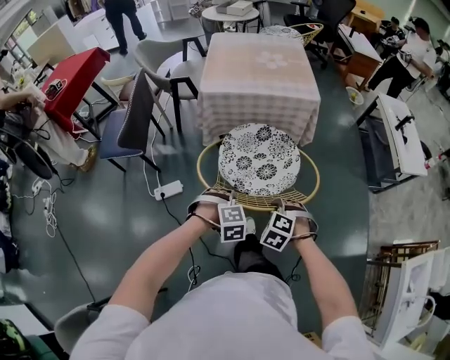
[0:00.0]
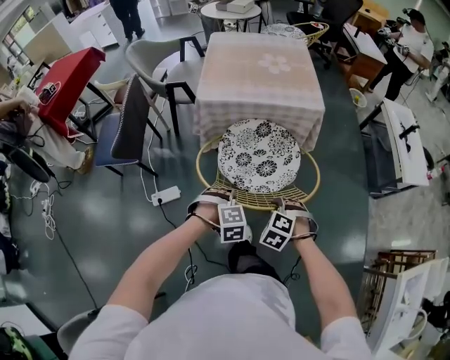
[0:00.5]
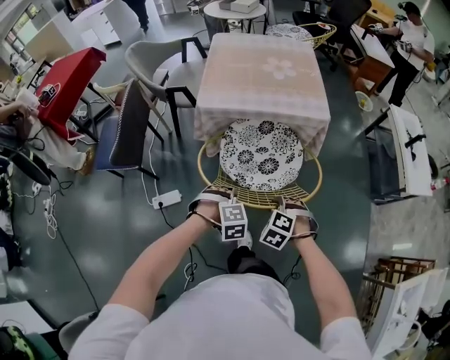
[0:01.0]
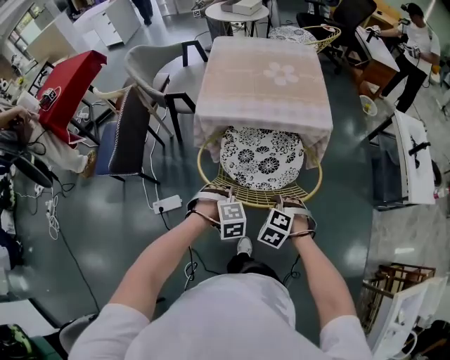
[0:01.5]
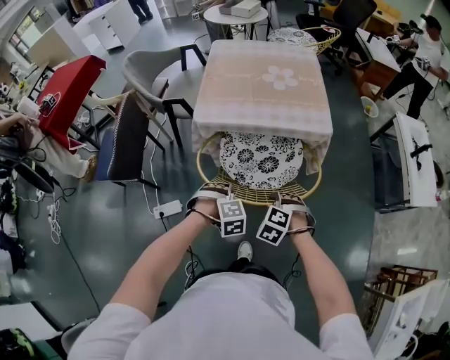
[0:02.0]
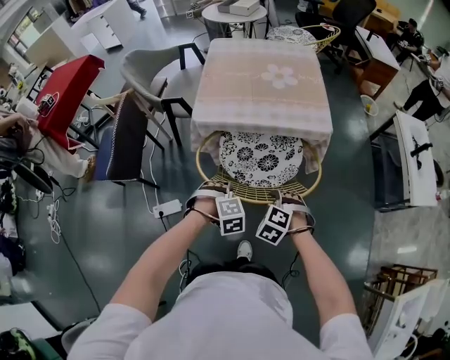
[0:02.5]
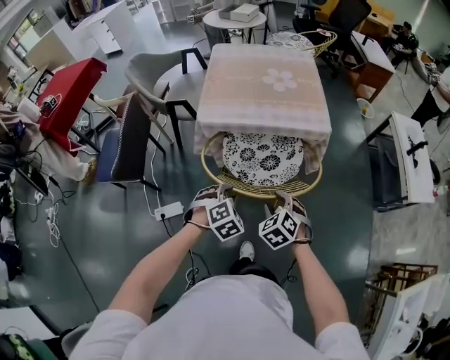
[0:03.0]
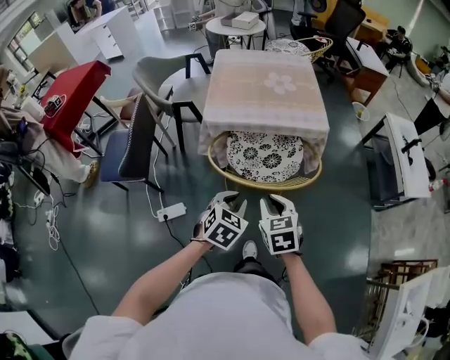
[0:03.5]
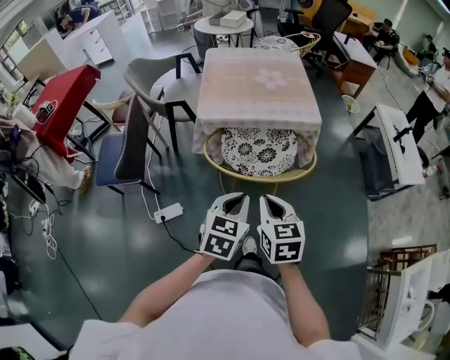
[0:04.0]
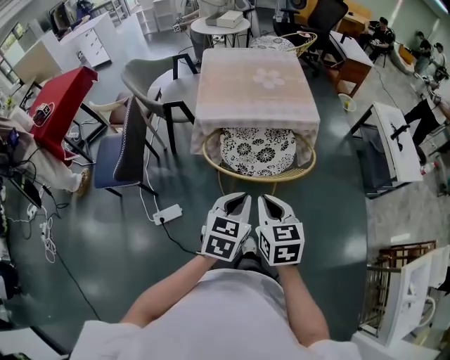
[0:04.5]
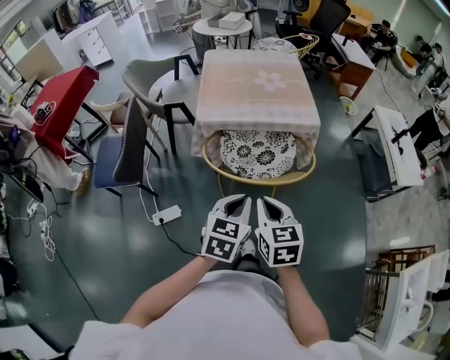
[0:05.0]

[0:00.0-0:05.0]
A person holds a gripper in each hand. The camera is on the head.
0:00.0 to 0:02.5: Both grippers move forward, approximately 25 cm.
0:02.5 to 0:05.0: The two grippers go approximately 25 cm upward and backward. The left gripper angles its fingers upward, by about 40 degrees; the right gripper rotates around the line of its fingers by roughly 60 degrees, clockwise from behind, and closes its fingers.

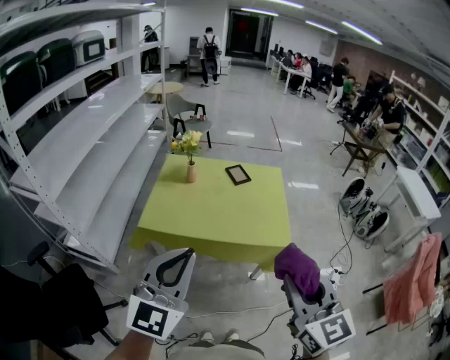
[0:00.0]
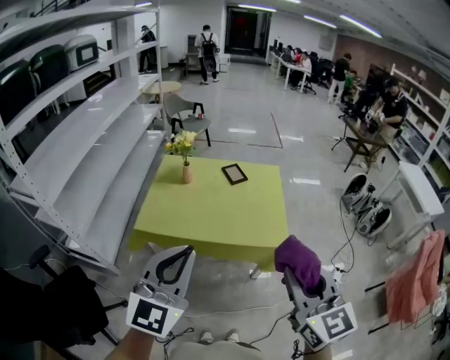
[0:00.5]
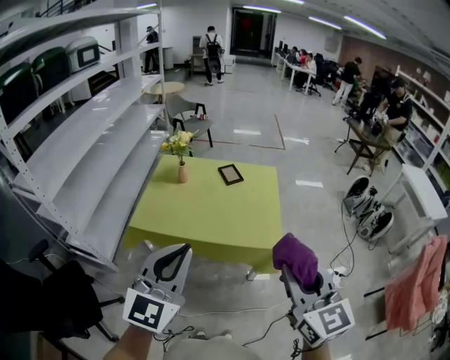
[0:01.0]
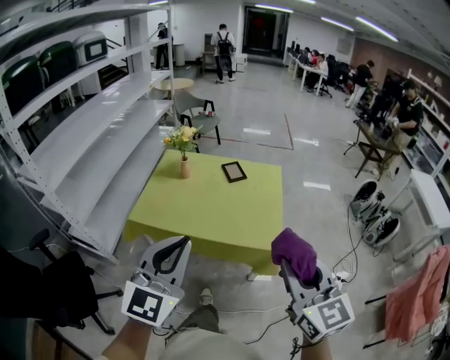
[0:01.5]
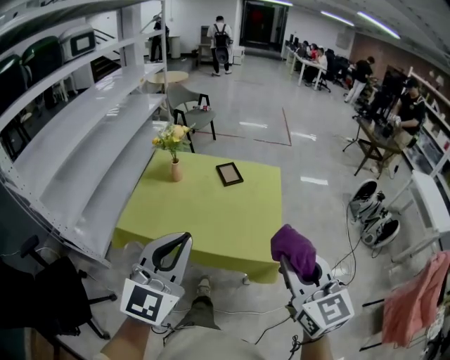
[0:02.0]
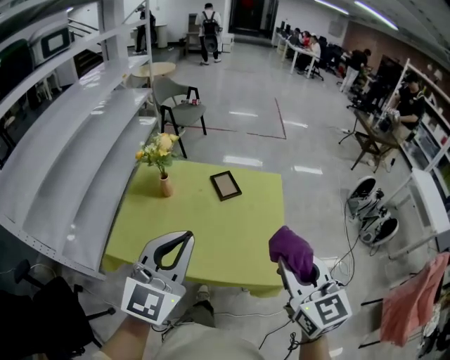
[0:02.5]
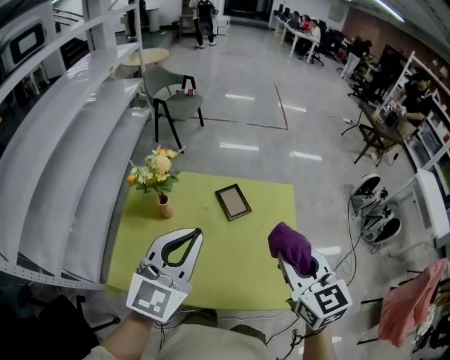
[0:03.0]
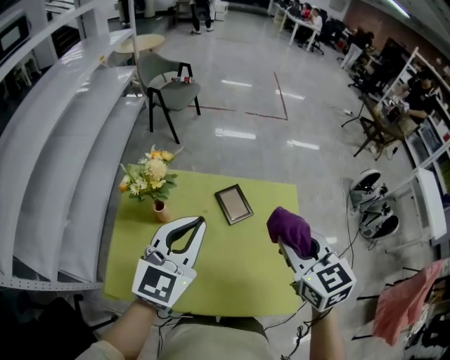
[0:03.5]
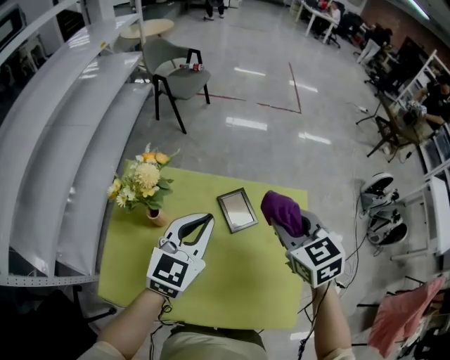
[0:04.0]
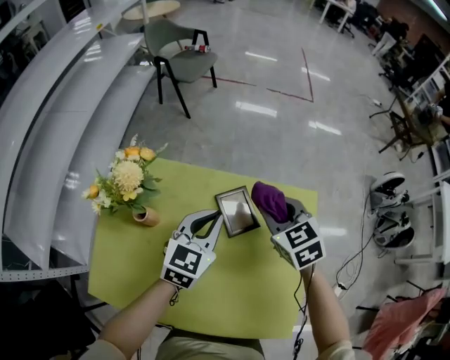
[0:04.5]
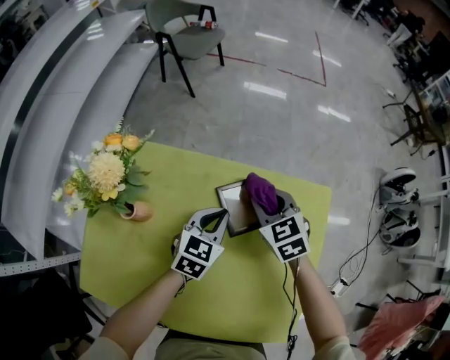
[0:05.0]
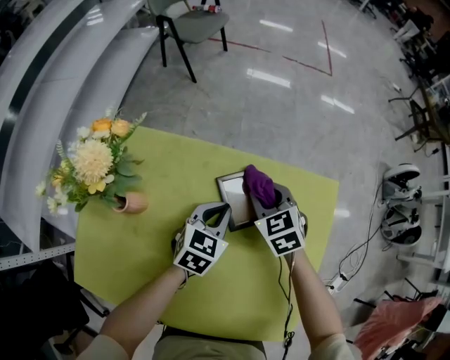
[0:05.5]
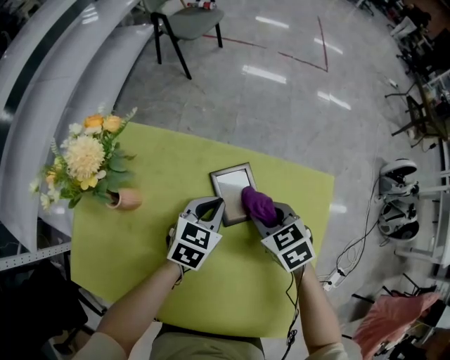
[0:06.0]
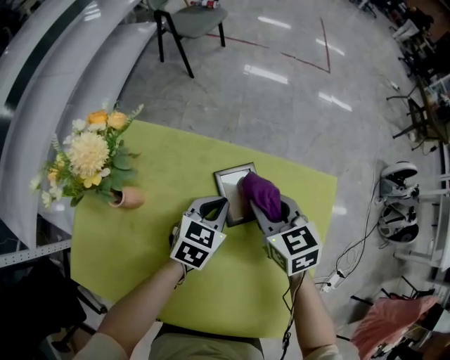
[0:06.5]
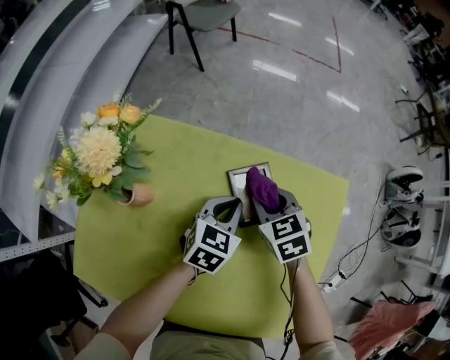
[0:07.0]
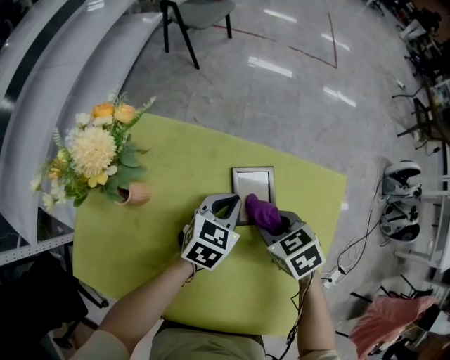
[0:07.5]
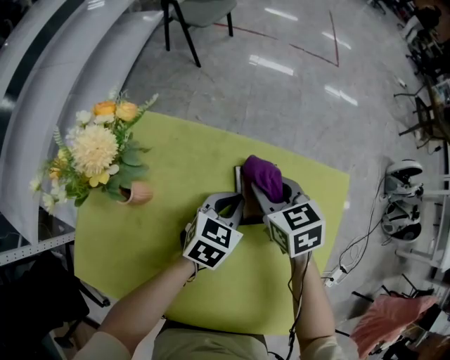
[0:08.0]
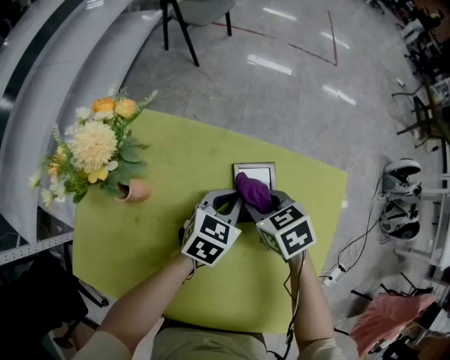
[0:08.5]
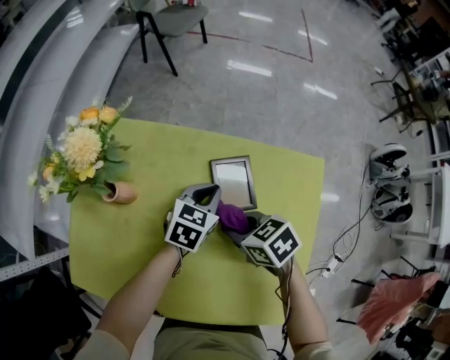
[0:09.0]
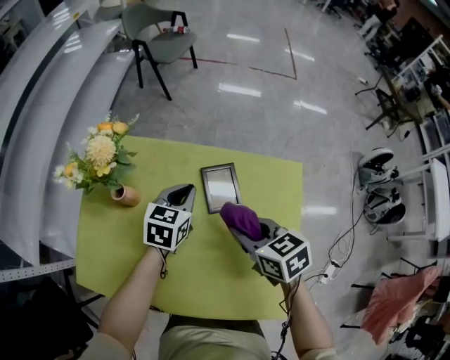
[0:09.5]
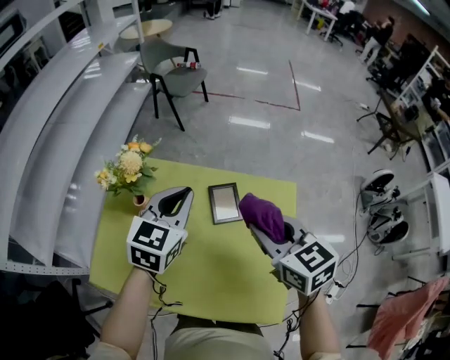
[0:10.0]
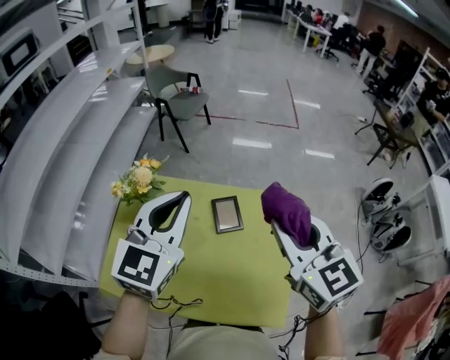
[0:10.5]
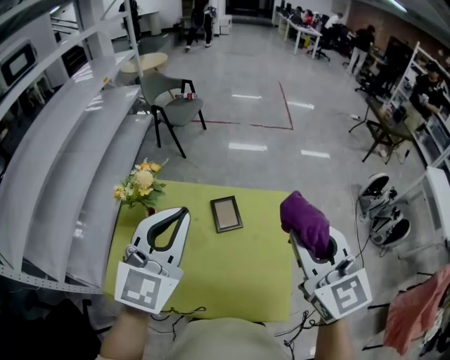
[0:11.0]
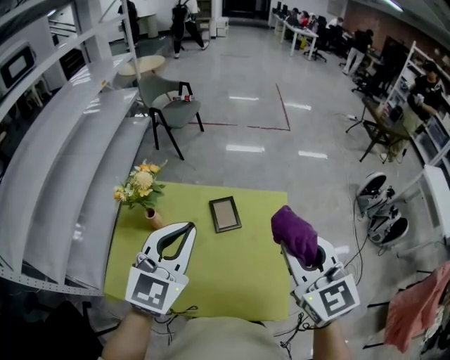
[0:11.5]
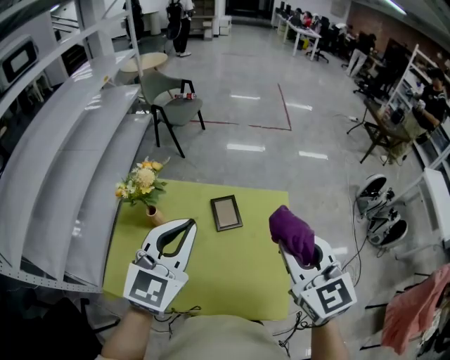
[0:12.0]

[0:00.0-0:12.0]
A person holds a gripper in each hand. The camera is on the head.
0:00.0 to 0:02.0: Both grippers move forward and to the right, approximately 20 cm.
0:02.0 to 0:04.0: The pair of grippers is taken forward, some 50 cm. The left gripper swivels some 20 degrees; the right gripper rotates approximately 30 degrees.
0:04.0 to 0:06.0: Both grippers travel together downward, about 25 cm. The left gripper rotates some 30 degrees. The right gripper turns by approximately 20 degrees.
0:06.0 to 0:08.0: The right gripper swings forward and backward, some 10 cm each way, with 2 reversals.
0:08.0 to 0:10.0: The right gripper shifts about 30 cm upward and backward; the left gripper moves upward, some 30 cm, and rotates about 20 degrees.
0:10.0 to 0:12.0: The left gripper travels upward and backward by some 20 cm; the right gripper goes approximately 15 cm upward, backward and to the right, and changes its angle by about 30 degrees.

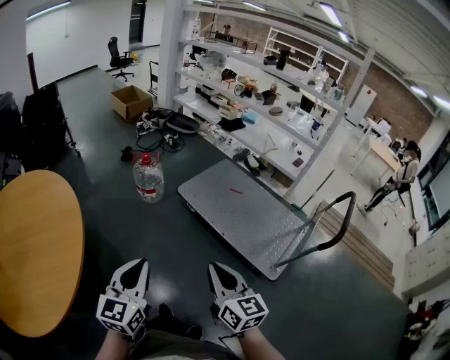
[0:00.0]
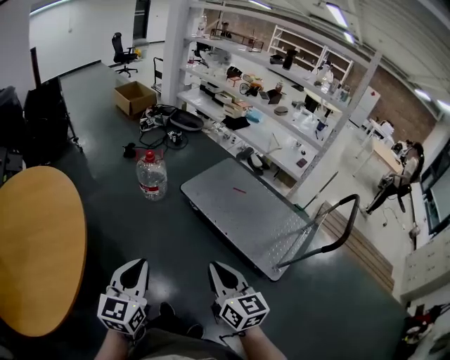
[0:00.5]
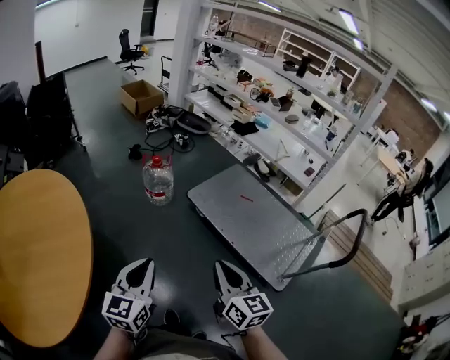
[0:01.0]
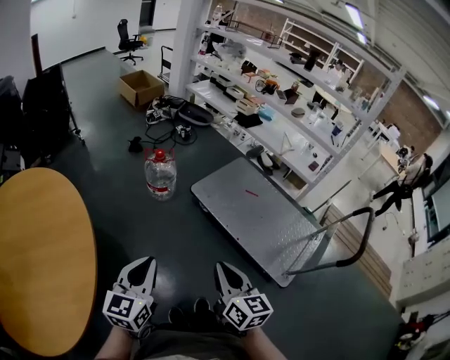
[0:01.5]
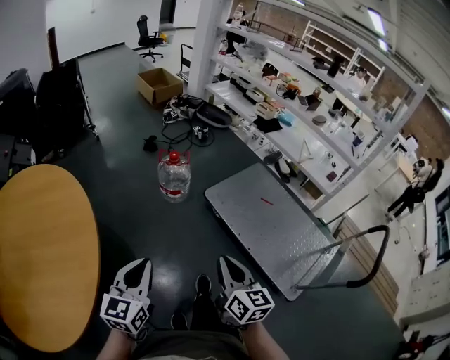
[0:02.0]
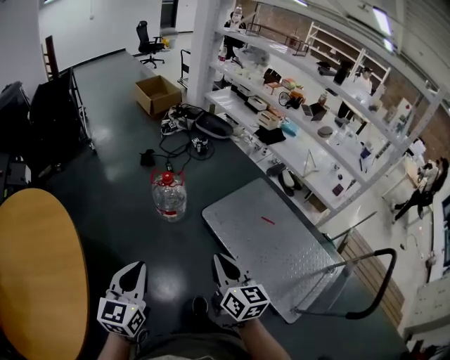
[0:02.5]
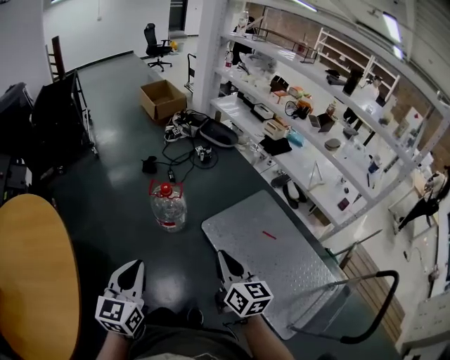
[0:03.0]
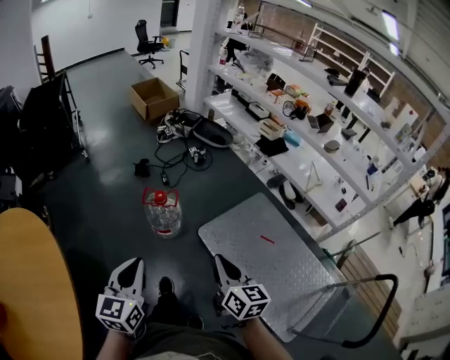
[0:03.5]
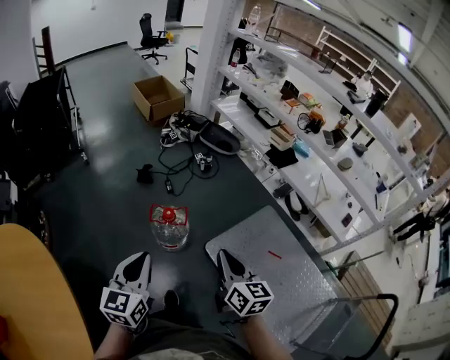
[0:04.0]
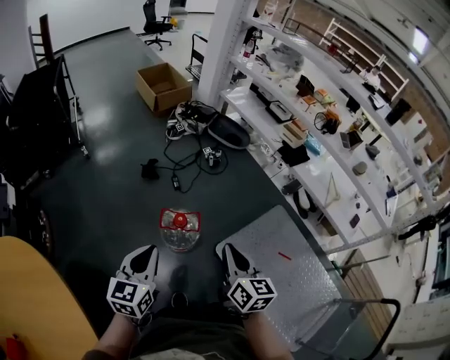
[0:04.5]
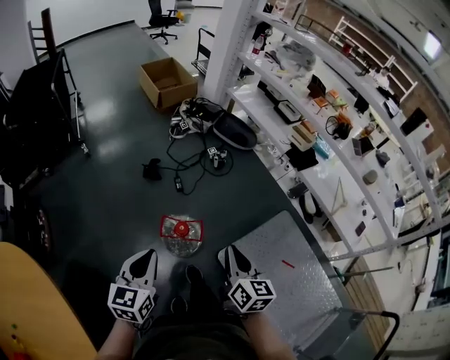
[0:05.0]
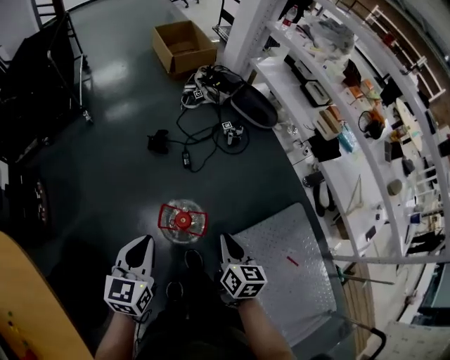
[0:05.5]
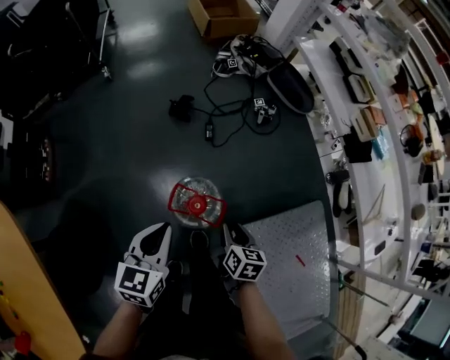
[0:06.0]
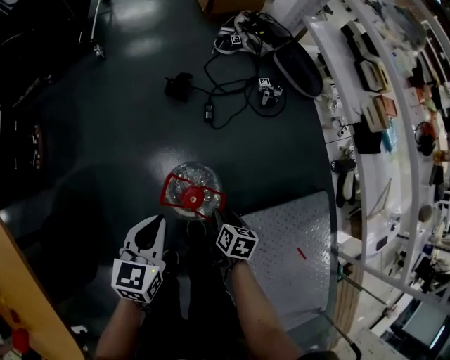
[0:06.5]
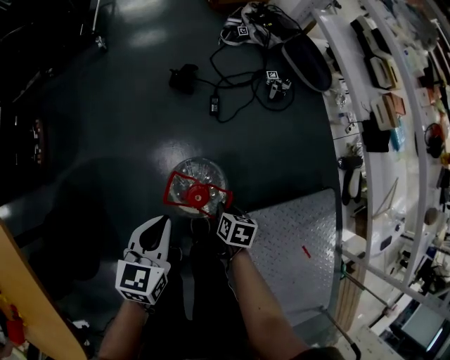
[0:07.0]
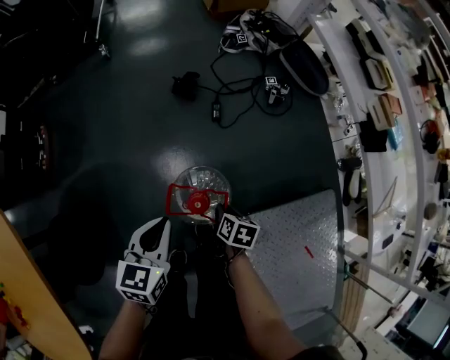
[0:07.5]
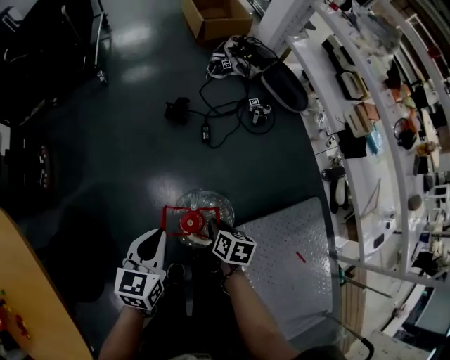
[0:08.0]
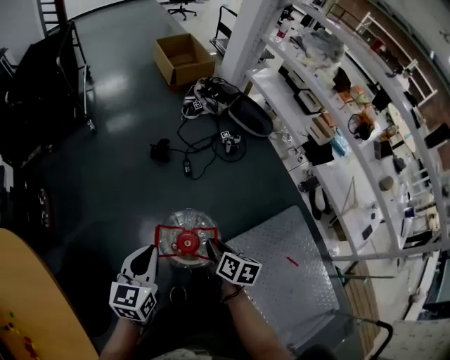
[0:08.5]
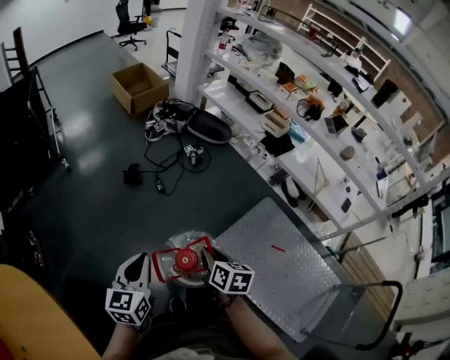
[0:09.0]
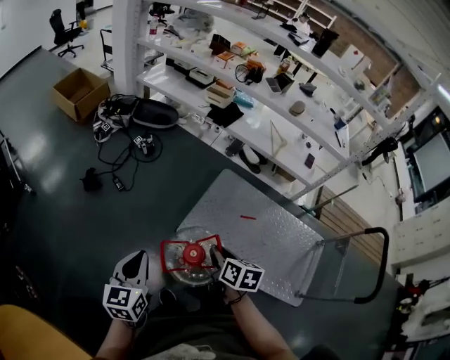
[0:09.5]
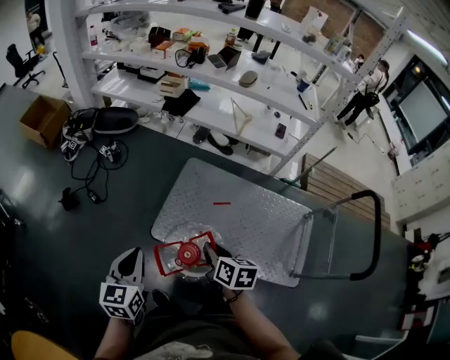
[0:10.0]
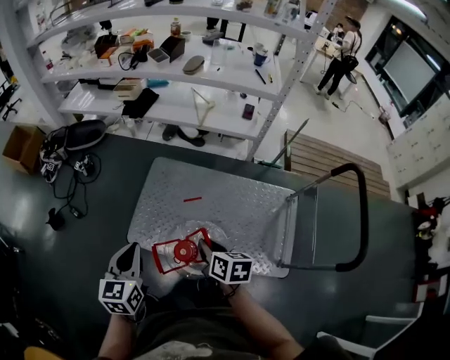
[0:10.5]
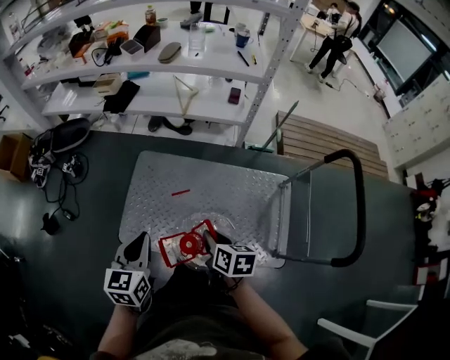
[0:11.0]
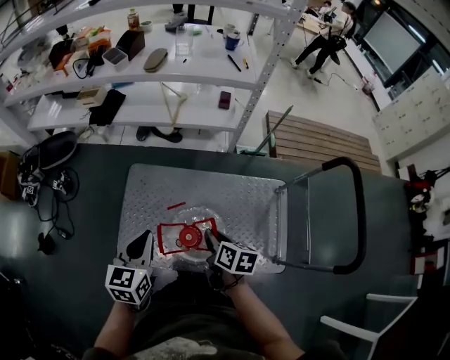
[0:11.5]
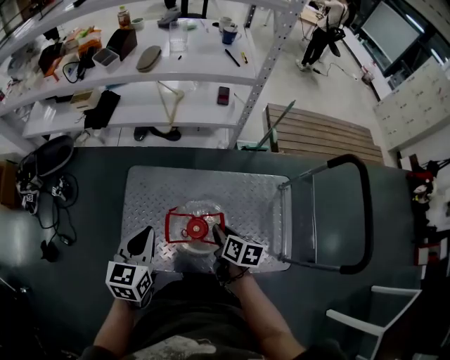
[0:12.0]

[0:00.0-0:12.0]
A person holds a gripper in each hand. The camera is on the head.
0:00.0 to 0:02.0: The grippers both shift forward and to the left by approximately 20 cm.
0:02.0 to 0:04.0: Both grippers are carried forward, some 50 cm.
0:04.0 to 0:06.0: The left gripper shifts about 35 cm forward and downward, and changes its angle by some 20 degrees, while the right gripper goes approximately 40 cm downward and forward, angles its fingers downward, by some 30 degrees, and opens its fingers.
0:06.0 to 0:08.0: The right gripper heads to the left, covering some 5 cm, and moves some 15 cm downward and comes back, while the left gripper moves about 10 cm downward and comes back.
0:08.0 to 0:10.0: The right gripper ends up about 50 cm from where it was, and turns by roughly 50 degrees, while the left gripper changes place by approximately 40 cm, and changes its angle by approximately 40 degrees.
0:10.0 to 0:12.0: Both grippers travel together to the right and forward, approximately 40 cm. The right gripper rotates approximately 30 degrees. Meanwhile the left gripper changes its angle by some 30 degrees.
